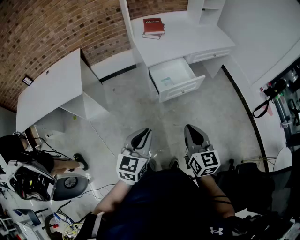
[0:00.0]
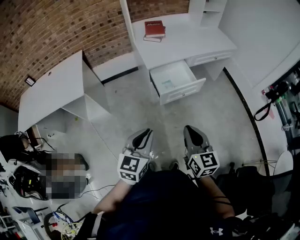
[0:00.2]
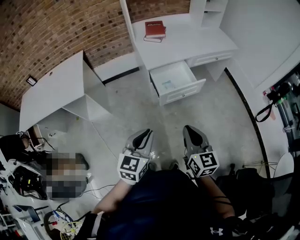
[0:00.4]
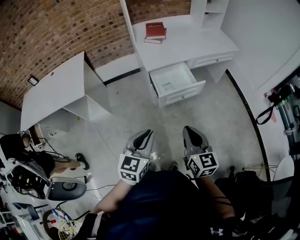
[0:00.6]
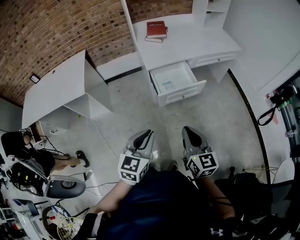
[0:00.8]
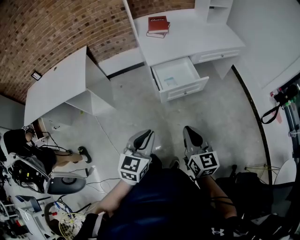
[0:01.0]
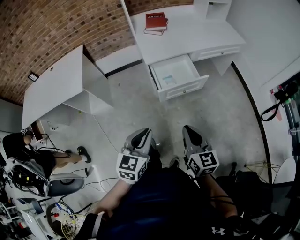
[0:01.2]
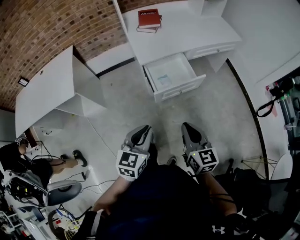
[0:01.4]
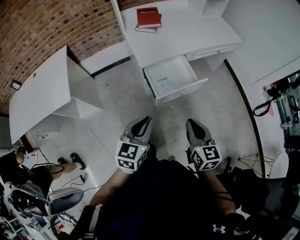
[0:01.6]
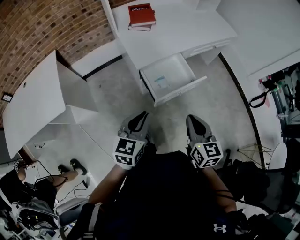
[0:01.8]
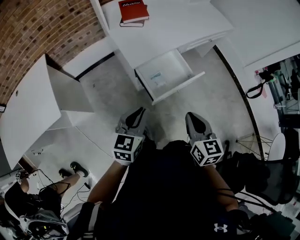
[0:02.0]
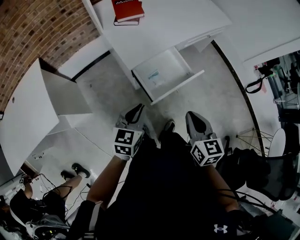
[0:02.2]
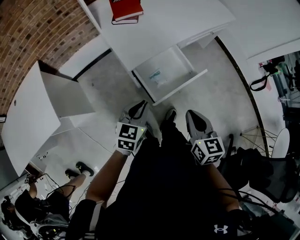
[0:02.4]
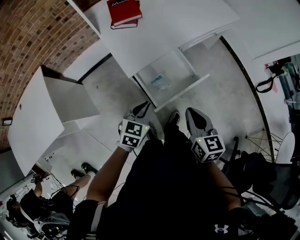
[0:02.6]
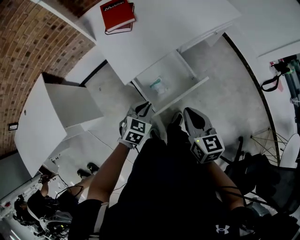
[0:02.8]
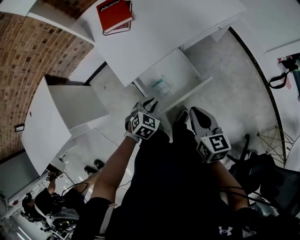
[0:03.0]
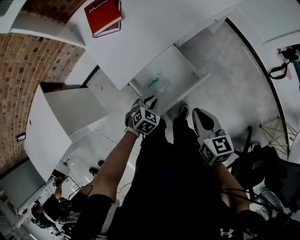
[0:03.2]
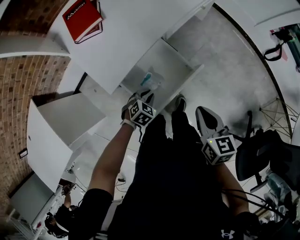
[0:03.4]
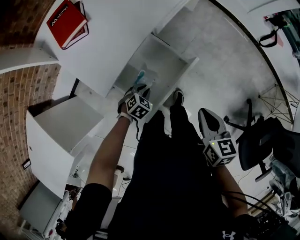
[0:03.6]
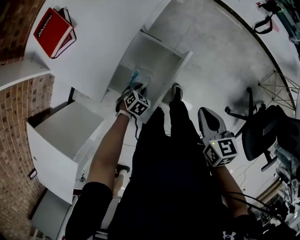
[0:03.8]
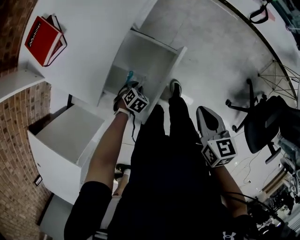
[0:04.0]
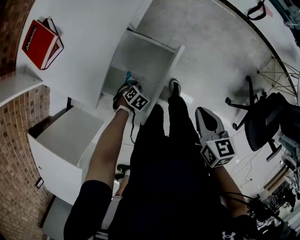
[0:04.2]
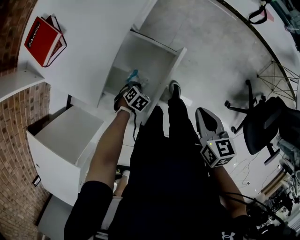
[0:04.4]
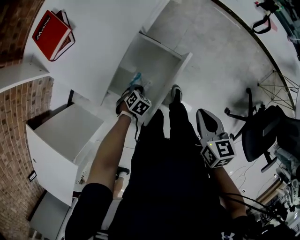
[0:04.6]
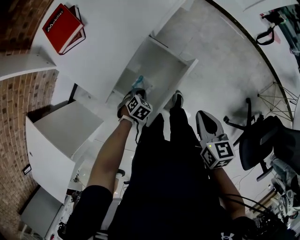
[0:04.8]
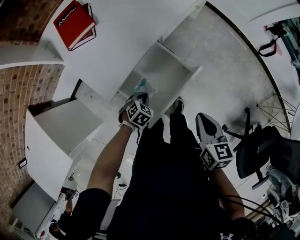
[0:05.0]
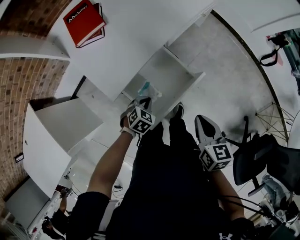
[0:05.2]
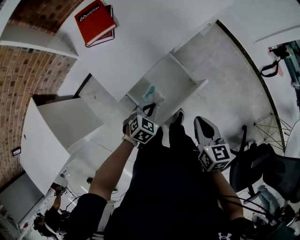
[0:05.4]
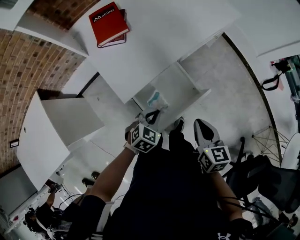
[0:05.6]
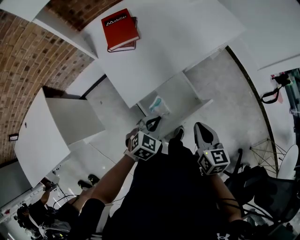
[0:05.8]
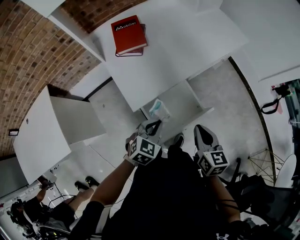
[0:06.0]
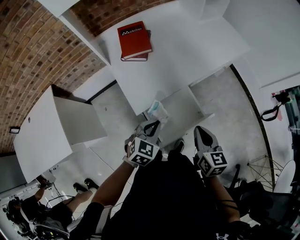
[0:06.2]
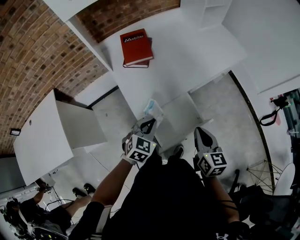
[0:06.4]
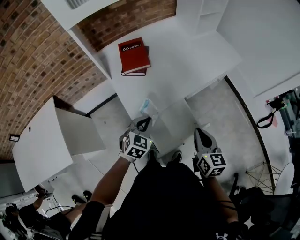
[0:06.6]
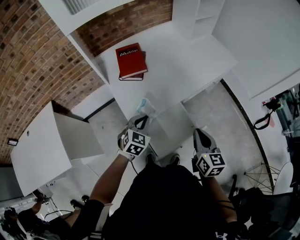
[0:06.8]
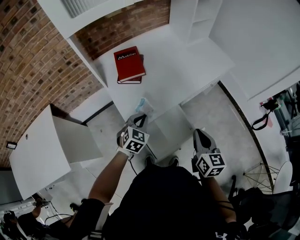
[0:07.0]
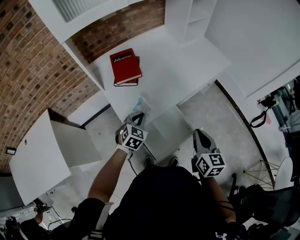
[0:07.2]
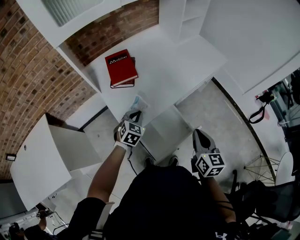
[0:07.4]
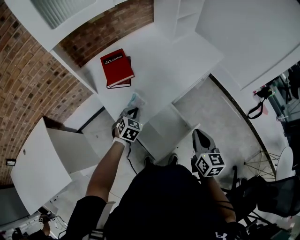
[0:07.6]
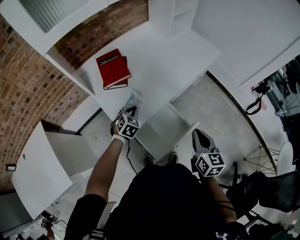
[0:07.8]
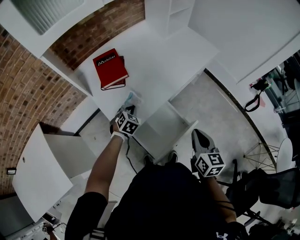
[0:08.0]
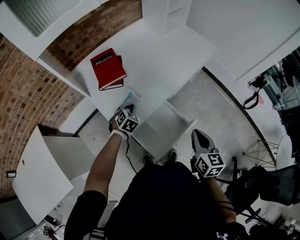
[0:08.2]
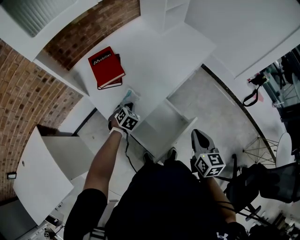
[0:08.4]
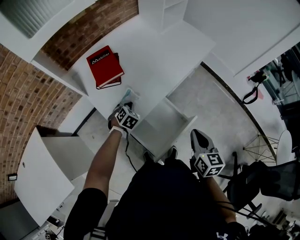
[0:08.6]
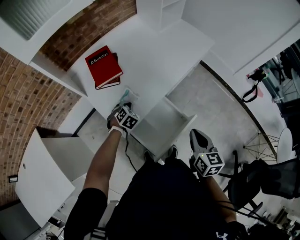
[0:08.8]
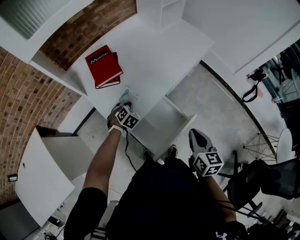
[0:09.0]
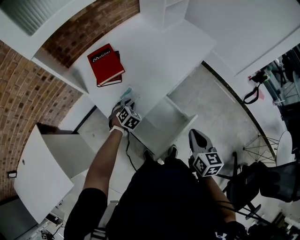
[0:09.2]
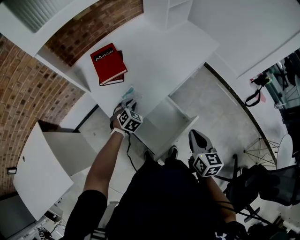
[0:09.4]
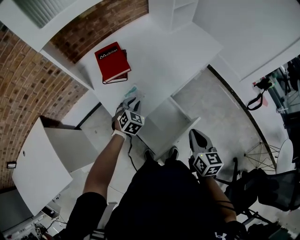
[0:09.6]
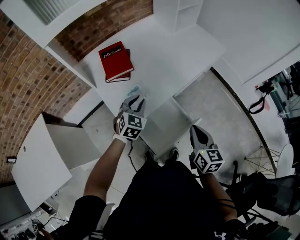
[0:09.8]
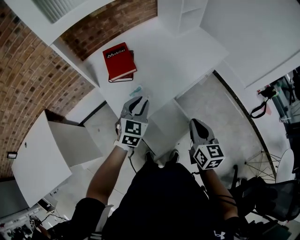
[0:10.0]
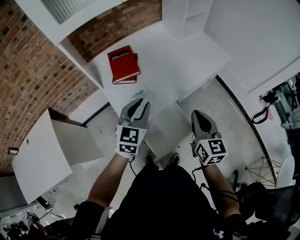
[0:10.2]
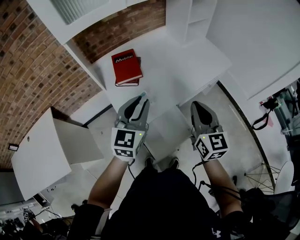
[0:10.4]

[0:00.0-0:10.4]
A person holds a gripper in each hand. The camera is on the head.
0:00.0 to 0:01.4: The left gripper travels forward and to the right by some 10 cm; the right gripper heads forward, covering some 5 cm.
0:01.4 to 0:03.0: The left gripper heads forward and downward, covering about 40 cm, and tilts its fingers some 30 degrees downward. Meanwhile the right gripper is displaced forward by roughly 25 cm, and swivels approximately 20 degrees.
0:03.0 to 0:04.4: The right gripper changes place by roughly 10 cm, and rotates about 30 degrees. The left gripper travels downward by roughly 20 cm, and changes its angle by some 40 degrees.
0:04.4 to 0:06.0: The left gripper moves upward, about 30 cm, and angles its fingers upward, by about 40 degrees. The right gripper shifts by approximately 15 cm, and rotates approximately 30 degrees.
0:06.0 to 0:07.4: The left gripper travels forward and to the left by some 15 cm, while the right gripper goes about 5 cm upward.
0:07.4 to 0:09.0: The left gripper is displaced downward and forward by some 10 cm, and rotates roughly 20 degrees.
0:09.0 to 0:10.4: The left gripper goes approximately 35 cm upward, tips its fingers upward by some 50 degrees, and opens its fingers. Meanwhile the right gripper shifts approximately 20 cm upward and forward, and changes its angle by about 30 degrees.

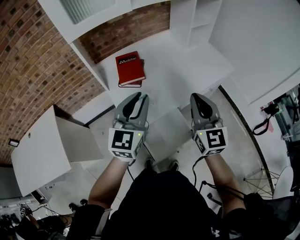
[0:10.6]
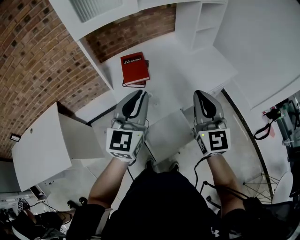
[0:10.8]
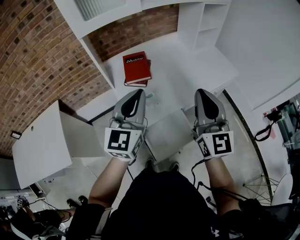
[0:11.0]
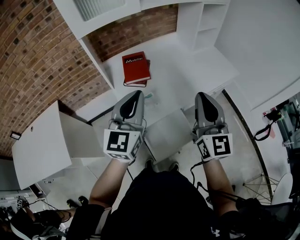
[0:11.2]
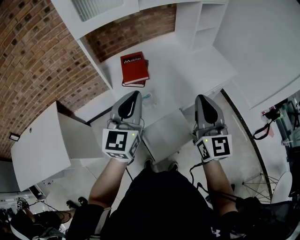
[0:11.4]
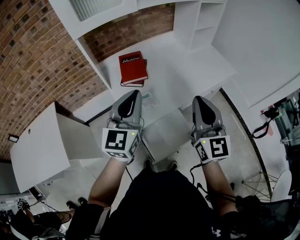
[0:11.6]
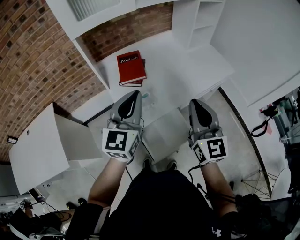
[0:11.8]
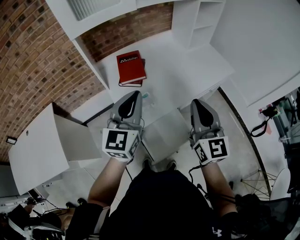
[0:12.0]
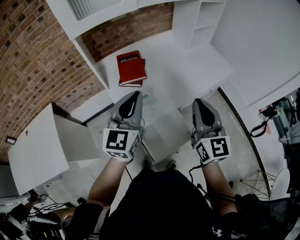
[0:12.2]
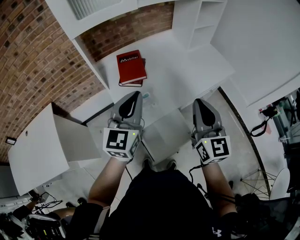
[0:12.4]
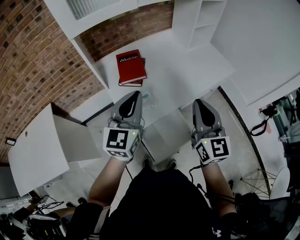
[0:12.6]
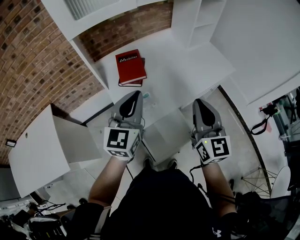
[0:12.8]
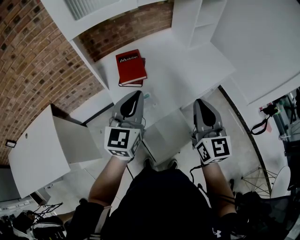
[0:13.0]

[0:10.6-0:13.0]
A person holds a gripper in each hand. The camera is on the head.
0:11.8 to 0:13.0: The grippers move only a little.

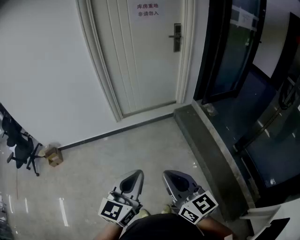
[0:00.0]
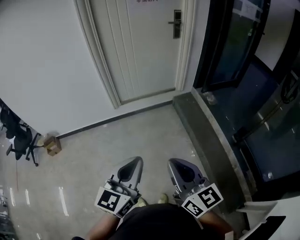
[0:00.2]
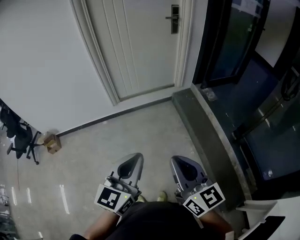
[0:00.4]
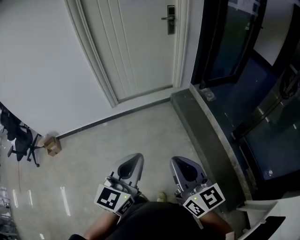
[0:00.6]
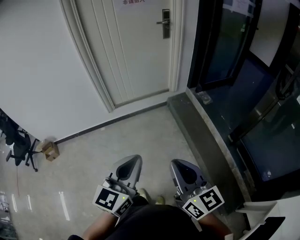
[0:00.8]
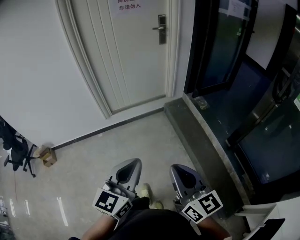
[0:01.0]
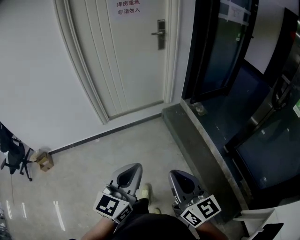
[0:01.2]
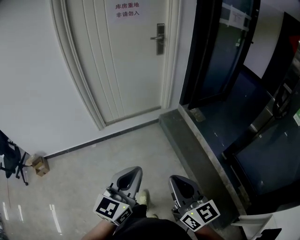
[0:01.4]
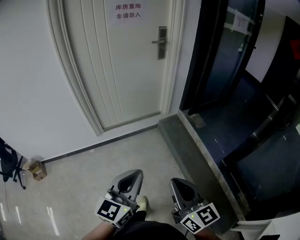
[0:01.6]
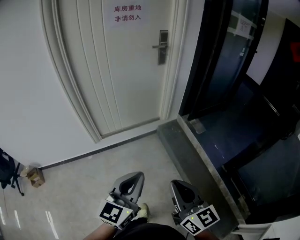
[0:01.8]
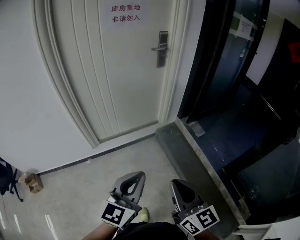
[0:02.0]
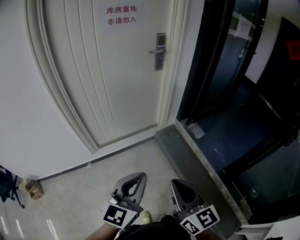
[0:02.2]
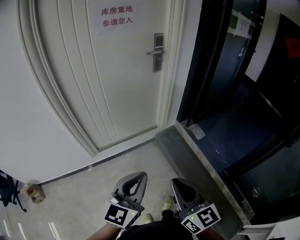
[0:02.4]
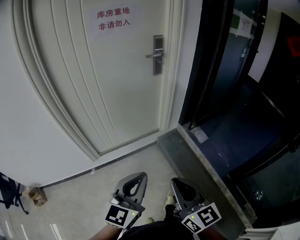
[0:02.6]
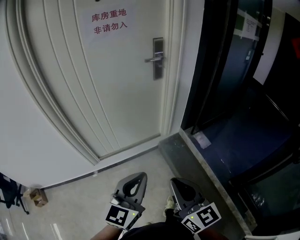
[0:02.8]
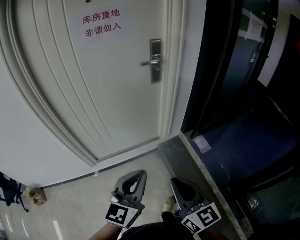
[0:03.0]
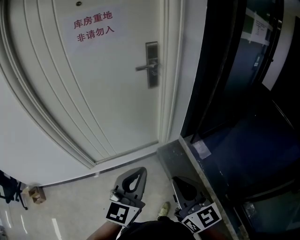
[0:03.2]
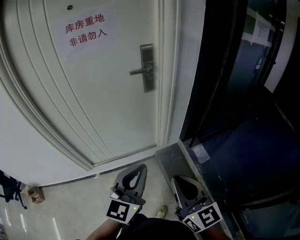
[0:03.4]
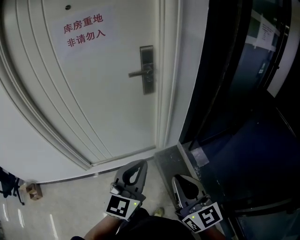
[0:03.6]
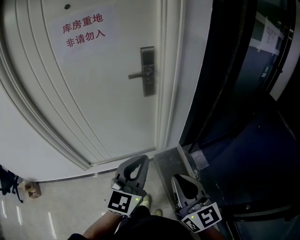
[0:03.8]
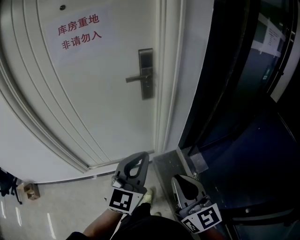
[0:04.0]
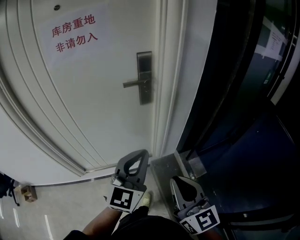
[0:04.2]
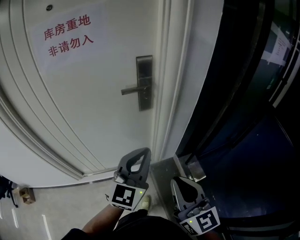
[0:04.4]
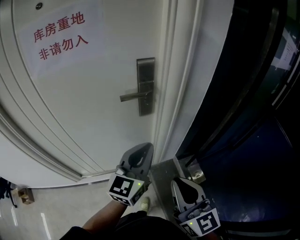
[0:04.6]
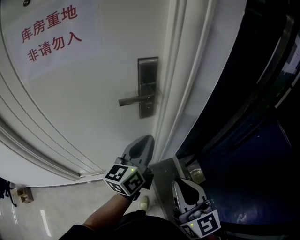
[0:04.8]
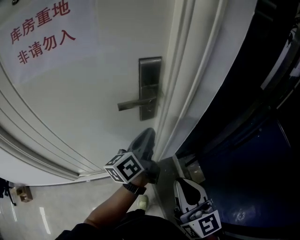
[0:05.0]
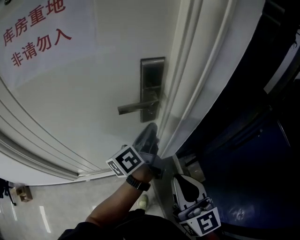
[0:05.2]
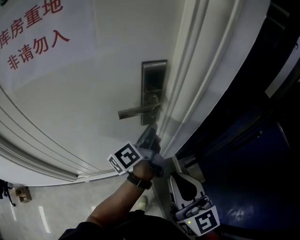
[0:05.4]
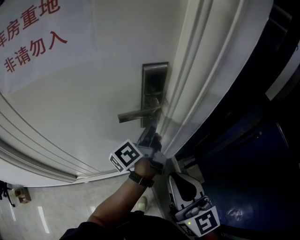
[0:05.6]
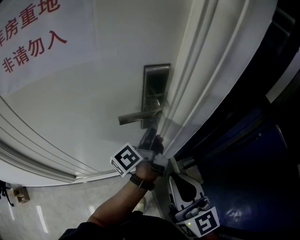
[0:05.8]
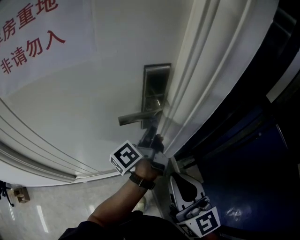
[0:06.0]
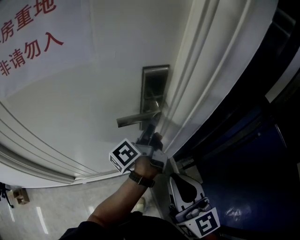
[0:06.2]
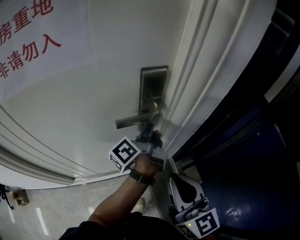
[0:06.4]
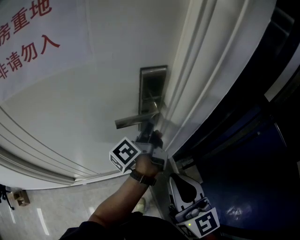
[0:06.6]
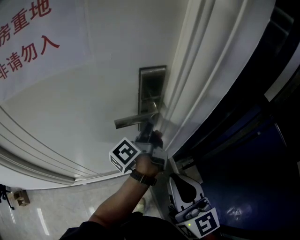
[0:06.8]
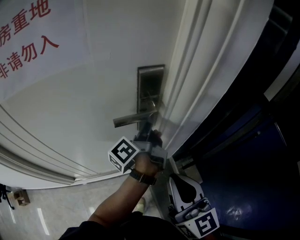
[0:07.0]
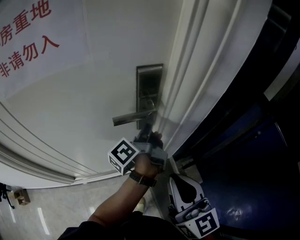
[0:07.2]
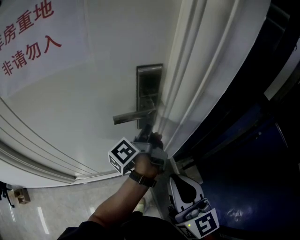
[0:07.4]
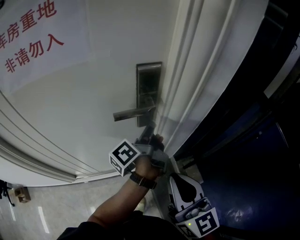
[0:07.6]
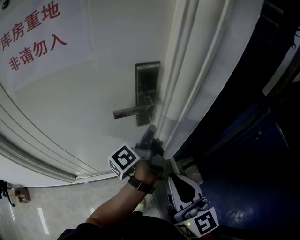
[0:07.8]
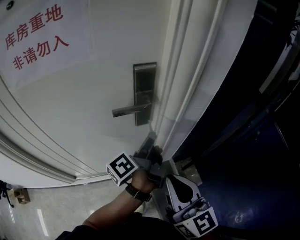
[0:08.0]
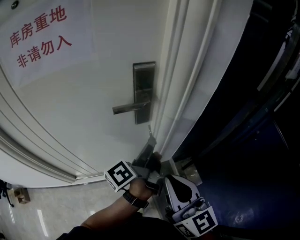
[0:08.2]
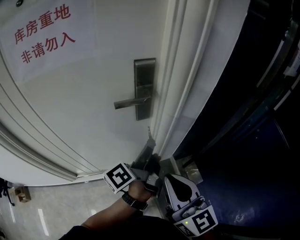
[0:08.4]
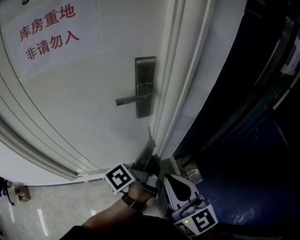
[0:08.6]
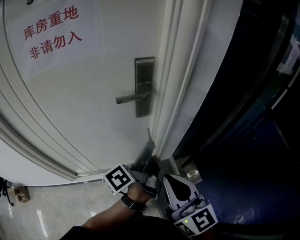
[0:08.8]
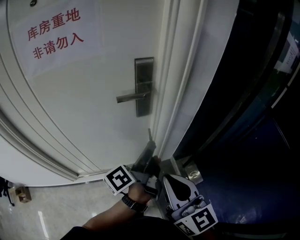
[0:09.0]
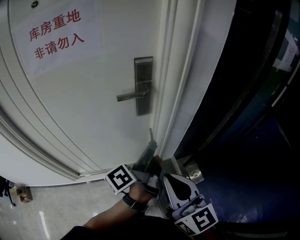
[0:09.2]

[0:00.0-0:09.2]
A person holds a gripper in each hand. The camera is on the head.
0:00.0 to 0:01.6: The grippers both shift forward and to the right by some 20 cm.
0:01.6 to 0:03.0: Both grippers travel together forward, roughly 35 cm.
0:03.0 to 0:04.6: The two grippers go approximately 35 cm forward.
0:04.6 to 0:06.2: The left gripper shifts roughly 25 cm forward, and rolls counterclockwise, seen from behind, by approximately 80 degrees. Meanwhile the right gripper shifts some 15 cm forward.
0:06.2 to 0:07.6: The grippers stay close to where they were, moving slightly.
0:07.6 to 0:09.2: The right gripper is displaced backward by some 10 cm. Meanwhile the left gripper goes roughly 20 cm backward.

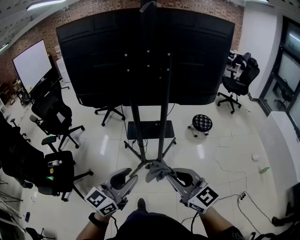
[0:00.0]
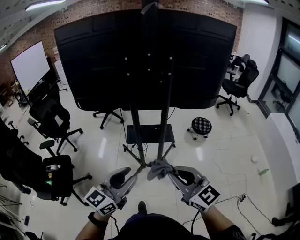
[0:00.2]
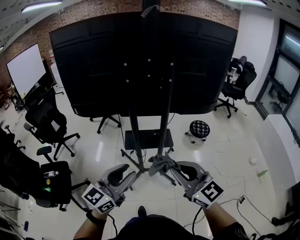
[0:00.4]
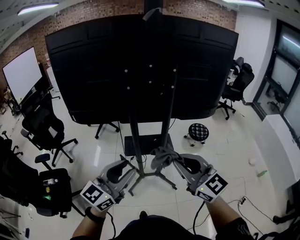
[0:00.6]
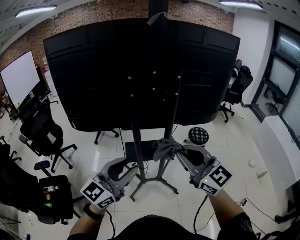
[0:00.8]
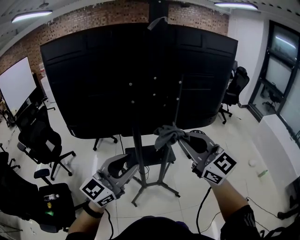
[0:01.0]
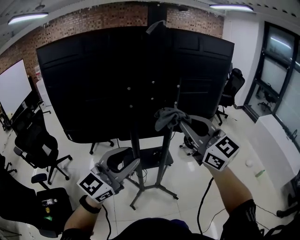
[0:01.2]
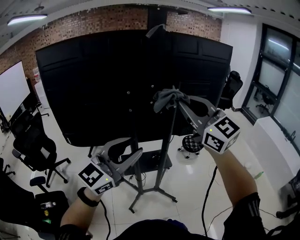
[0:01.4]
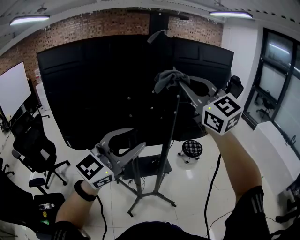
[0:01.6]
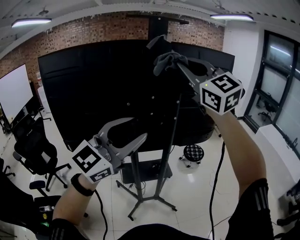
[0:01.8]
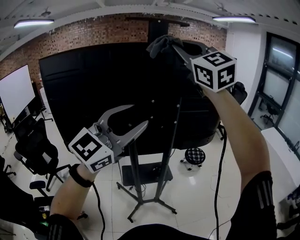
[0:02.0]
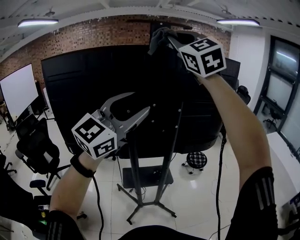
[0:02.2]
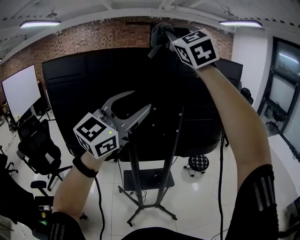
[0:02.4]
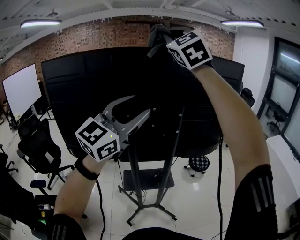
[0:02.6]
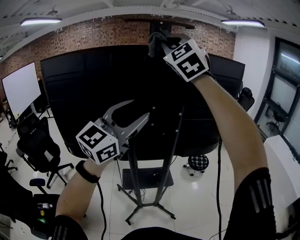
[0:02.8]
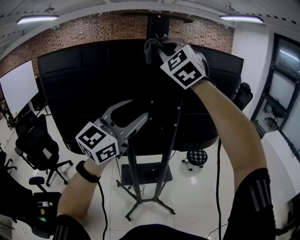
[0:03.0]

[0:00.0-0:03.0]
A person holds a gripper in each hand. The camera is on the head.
0:00.0 to 0:01.6: The left gripper shifts about 35 cm forward and upward, and changes its angle by some 30 degrees. Meanwhile the right gripper heads upward and forward, covering roughly 50 cm, and swivels roughly 30 degrees.
0:01.6 to 0:03.0: The left gripper is displaced forward and upward by roughly 15 cm. Meanwhile the right gripper is displaced forward, upward and to the left by roughly 20 cm, and swivels approximately 40 degrees.
